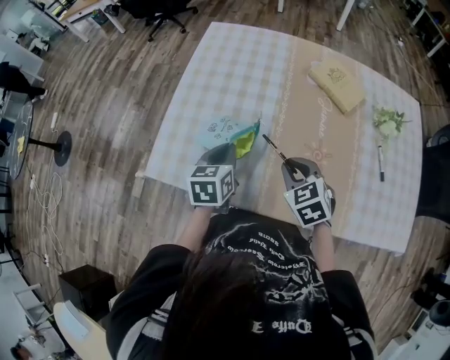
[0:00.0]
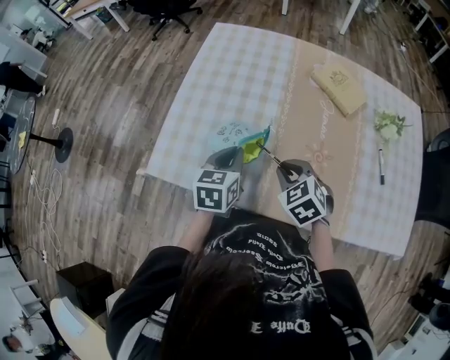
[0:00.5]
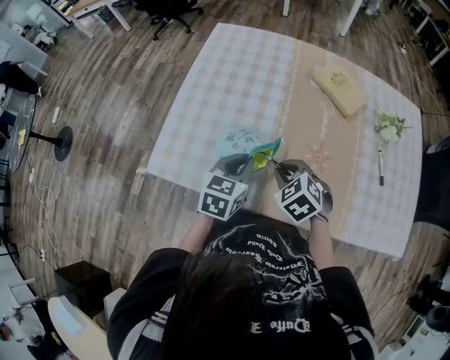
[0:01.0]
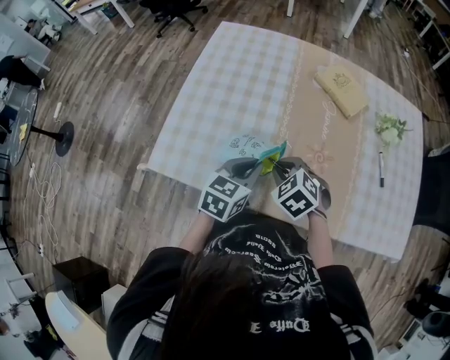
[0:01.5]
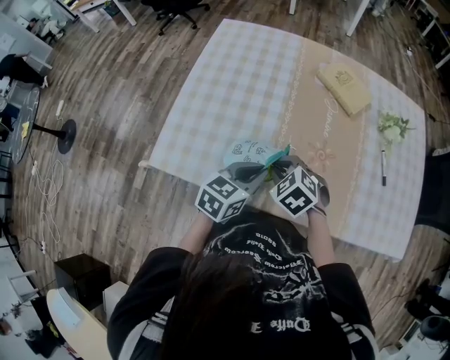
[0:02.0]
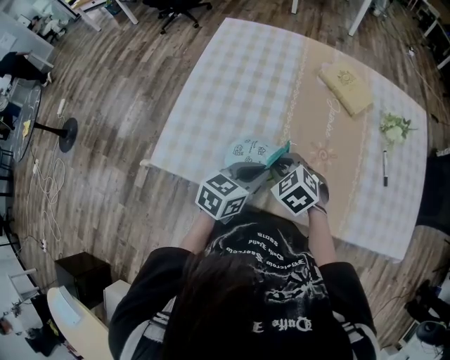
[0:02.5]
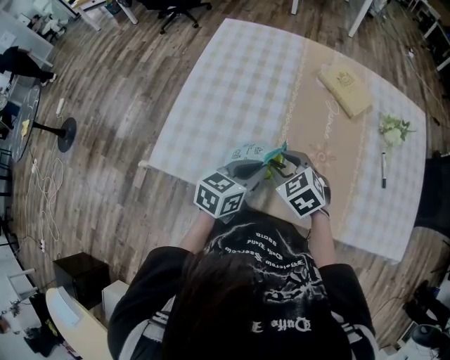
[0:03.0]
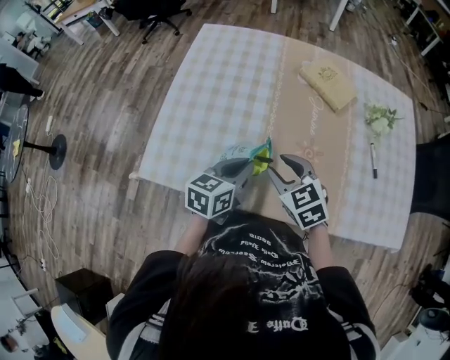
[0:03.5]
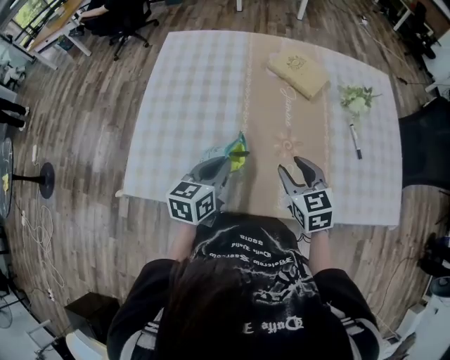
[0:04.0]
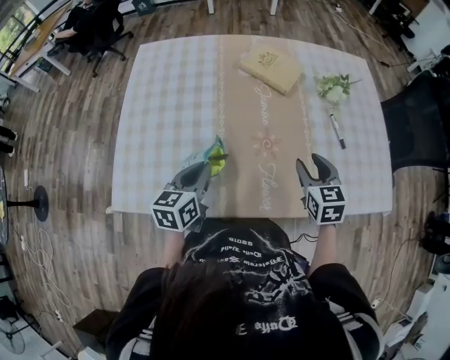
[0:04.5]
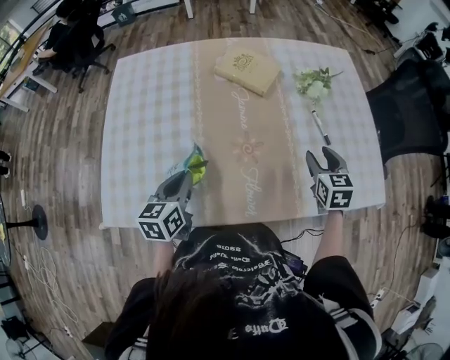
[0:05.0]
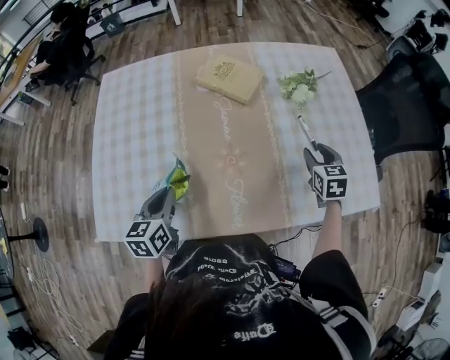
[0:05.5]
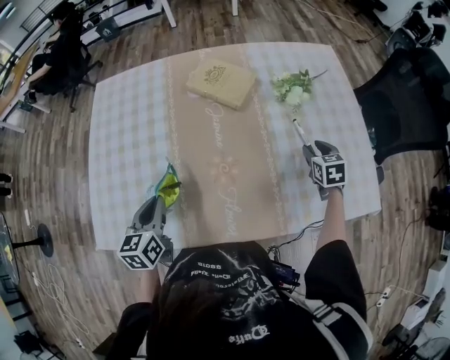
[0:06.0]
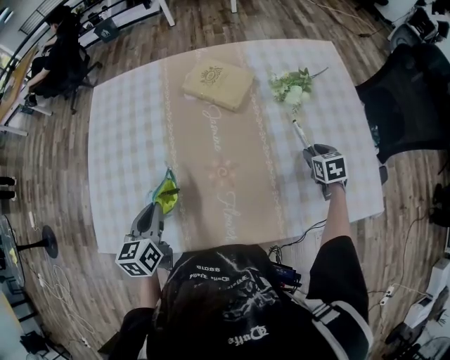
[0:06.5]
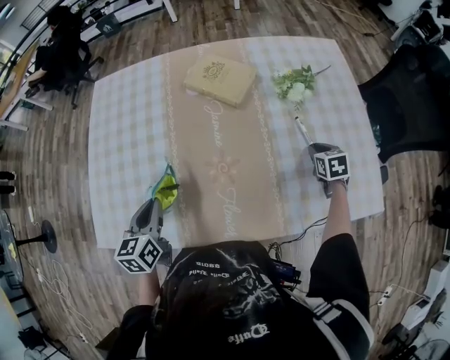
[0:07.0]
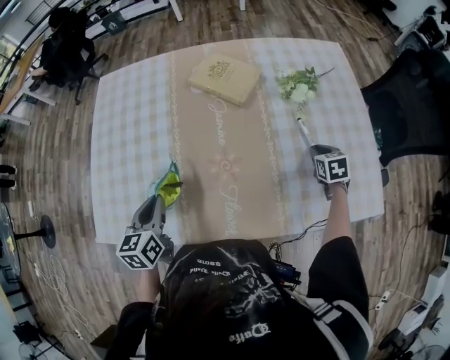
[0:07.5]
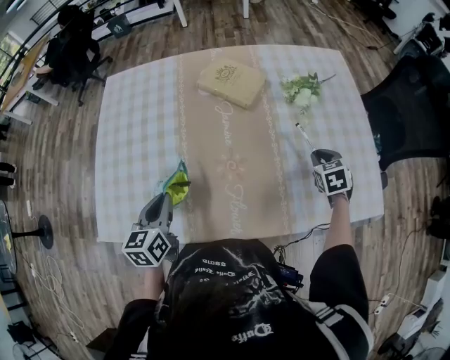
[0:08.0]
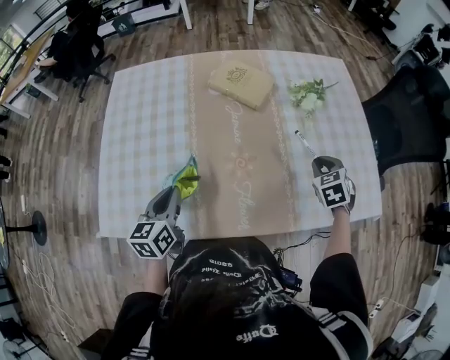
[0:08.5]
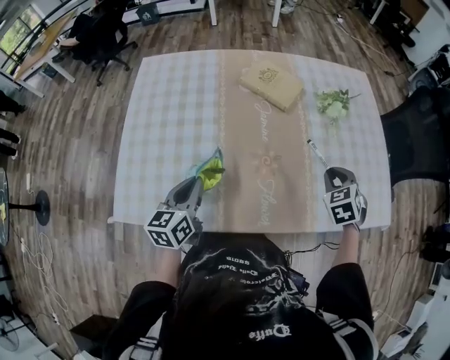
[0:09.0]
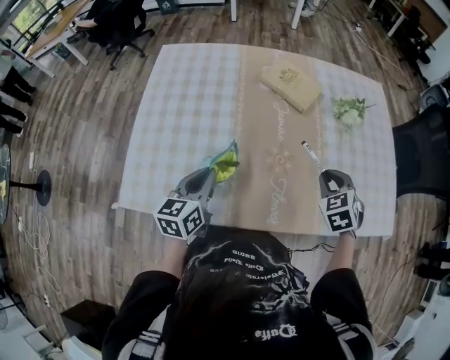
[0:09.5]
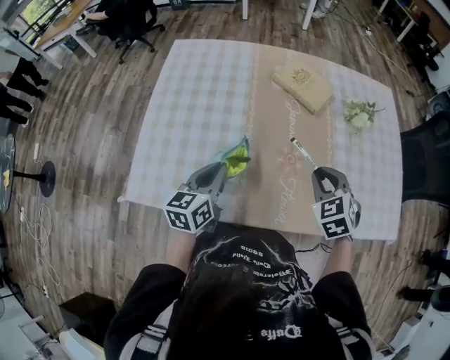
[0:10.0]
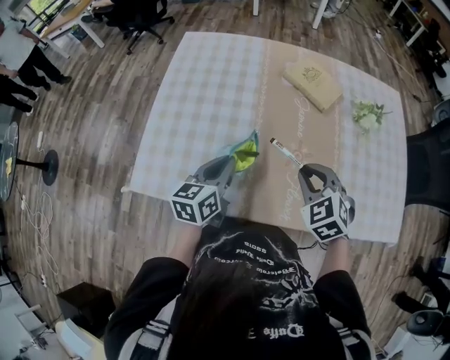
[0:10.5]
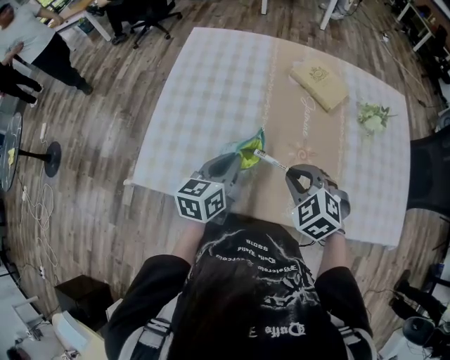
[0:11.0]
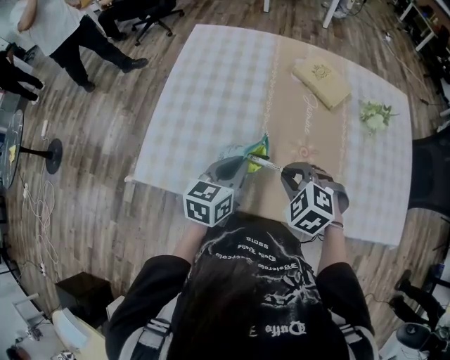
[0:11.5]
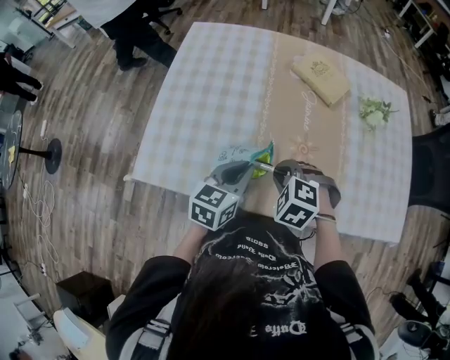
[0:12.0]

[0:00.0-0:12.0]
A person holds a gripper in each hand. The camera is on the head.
0:00.0 to 0:02.0: The left gripper heads to the right and backward, covering about 10 cm, and turns by roughly 30 degrees. The right gripper shifts by about 5 cm, and changes its angle by about 20 degrees.
0:02.0 to 0:04.0: The right gripper shifts approximately 15 cm to the right, changes its angle by approximately 40 degrees, and opens its fingers.
0:04.0 to 0:06.0: The left gripper changes place by roughly 5 cm. The right gripper heads to the right and forward, covering approximately 35 cm, and changes its angle by roughly 30 degrees.
0:06.0 to 0:08.0: The right gripper closes up.
0:08.0 to 0:10.0: The right gripper is displaced to the left, upward and backward by some 30 cm, and changes its angle by some 30 degrees, while the left gripper shifts some 5 cm to the left.
0:10.0 to 0:12.0: The right gripper moves to the left, some 15 cm, and turns by some 40 degrees.

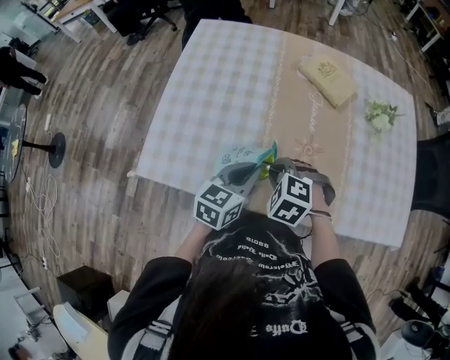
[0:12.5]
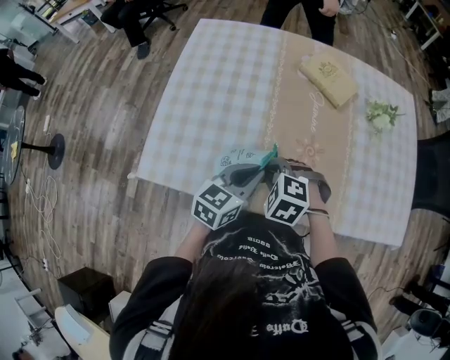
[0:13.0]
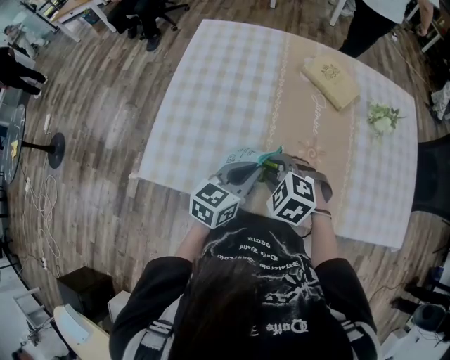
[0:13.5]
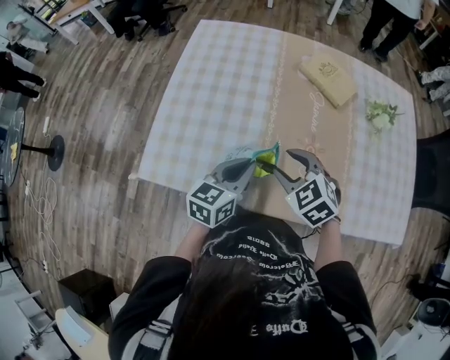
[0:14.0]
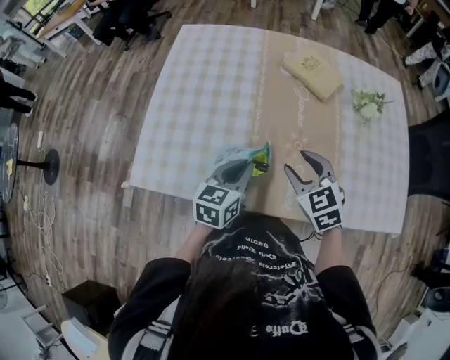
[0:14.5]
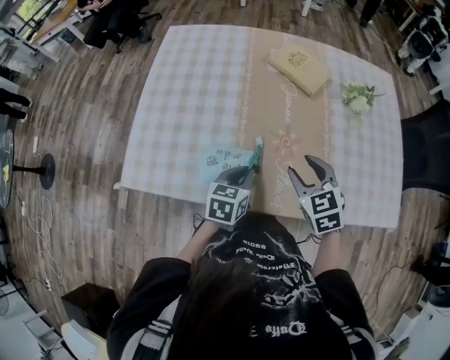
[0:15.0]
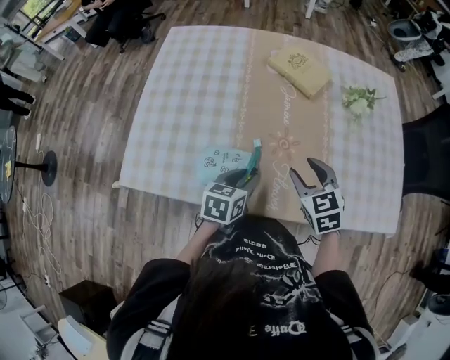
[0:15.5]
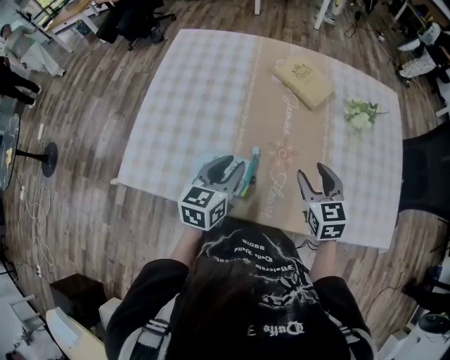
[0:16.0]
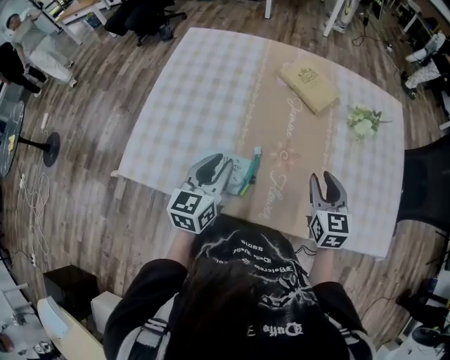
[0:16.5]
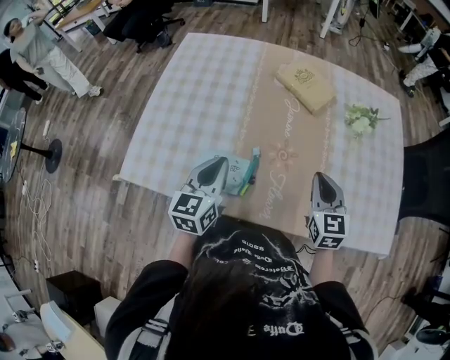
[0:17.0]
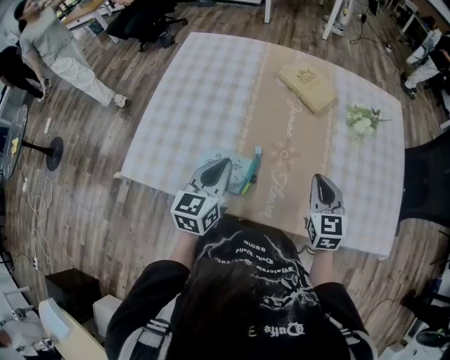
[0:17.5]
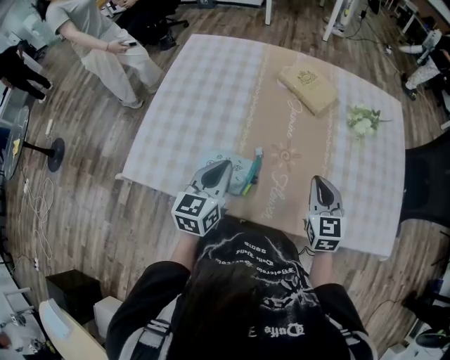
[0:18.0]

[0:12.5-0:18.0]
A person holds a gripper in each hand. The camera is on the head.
0:12.5 to 0:14.5: The right gripper heads to the right, covering about 10 cm, changes its angle by approximately 50 degrees, and opens its fingers.
0:14.5 to 0:16.0: The right gripper goes roughly 15 cm to the right and upward, while the left gripper heads upward, covering some 10 cm, and opens its fingers.
0:16.0 to 0:18.0: The right gripper heads downward, covering approximately 5 cm, and closes, while the left gripper closes its fingers.

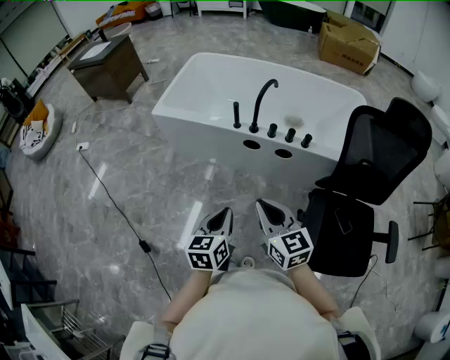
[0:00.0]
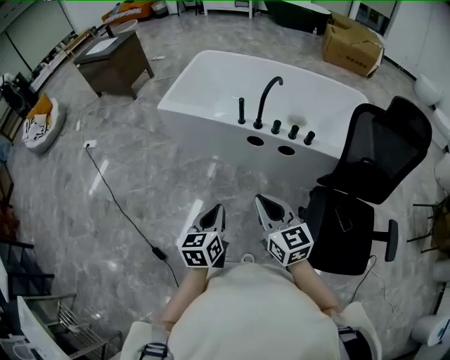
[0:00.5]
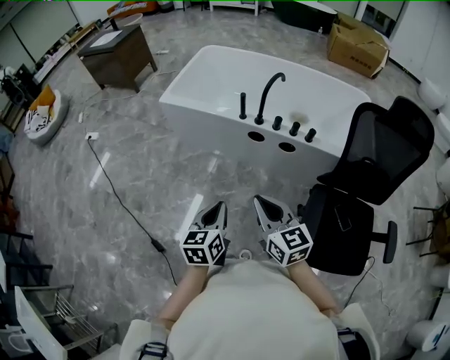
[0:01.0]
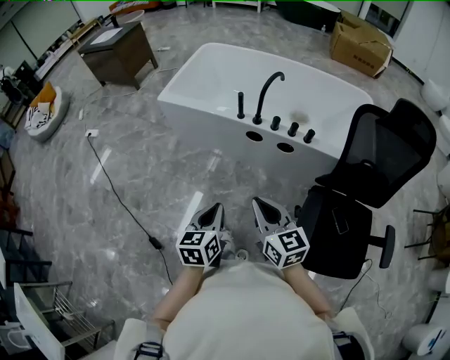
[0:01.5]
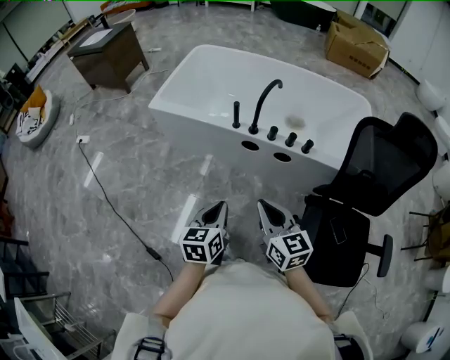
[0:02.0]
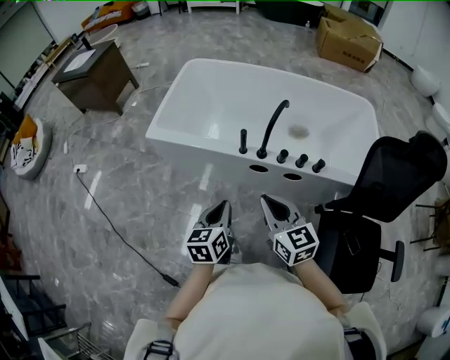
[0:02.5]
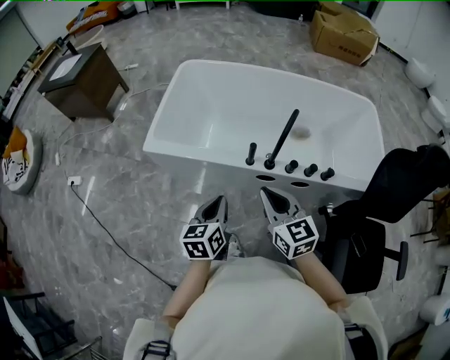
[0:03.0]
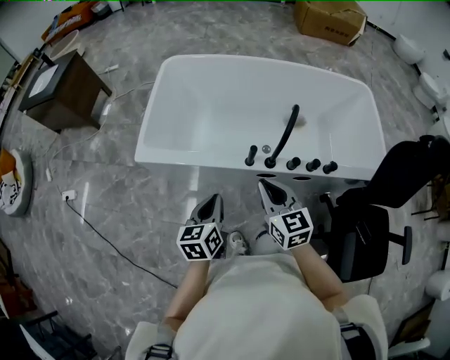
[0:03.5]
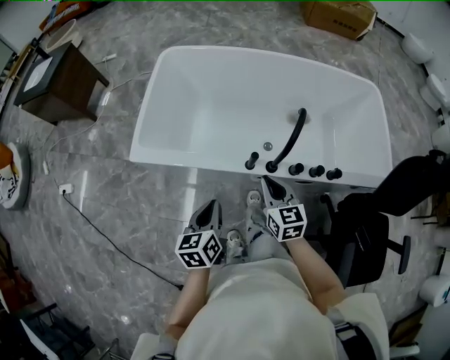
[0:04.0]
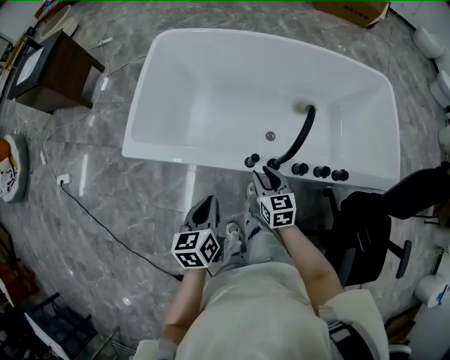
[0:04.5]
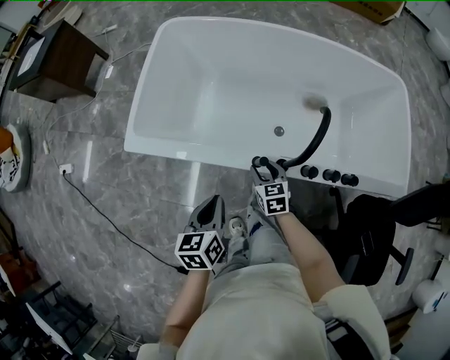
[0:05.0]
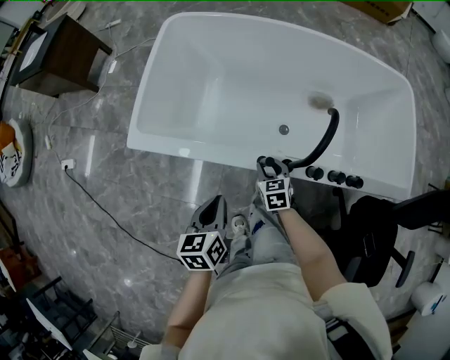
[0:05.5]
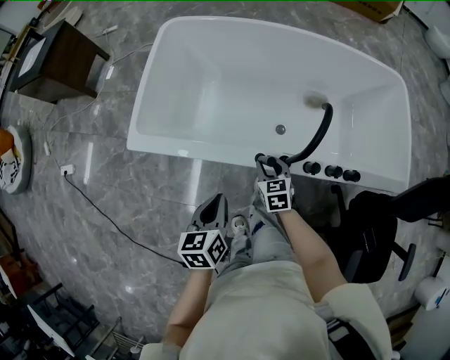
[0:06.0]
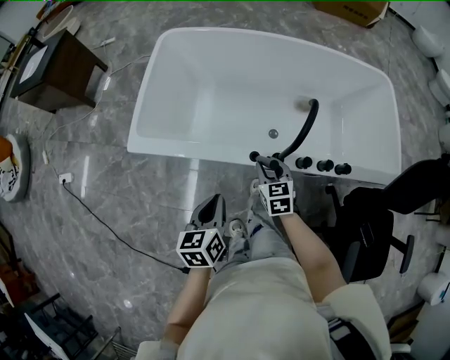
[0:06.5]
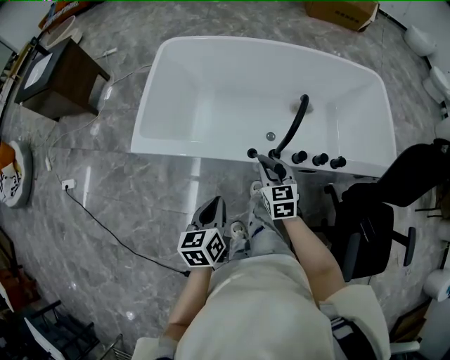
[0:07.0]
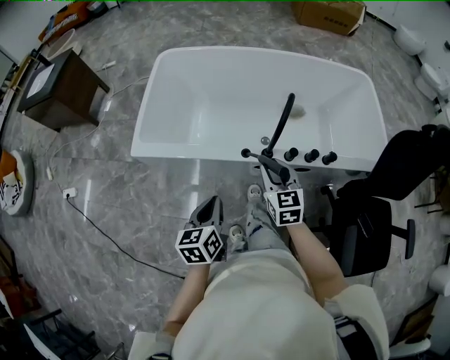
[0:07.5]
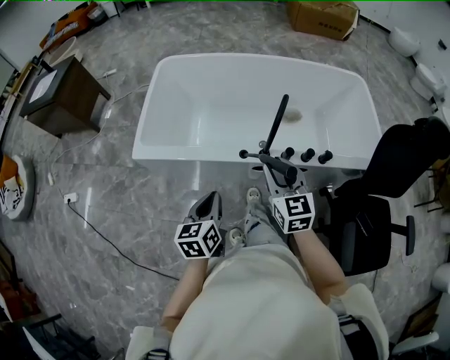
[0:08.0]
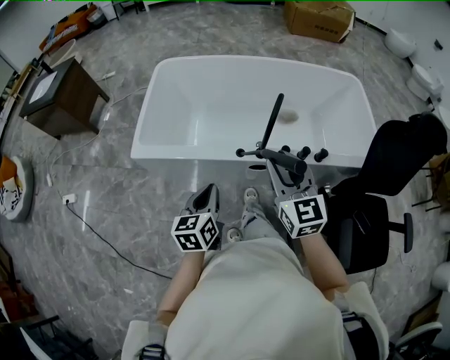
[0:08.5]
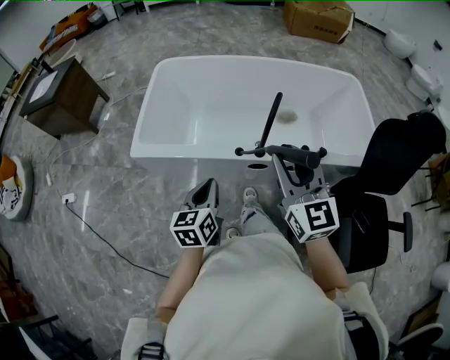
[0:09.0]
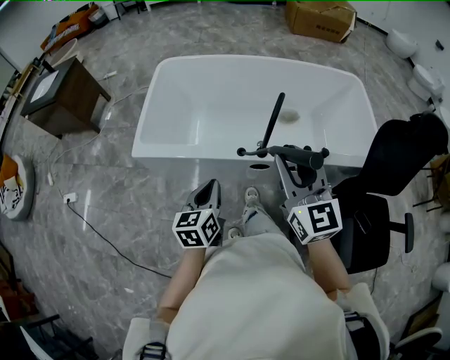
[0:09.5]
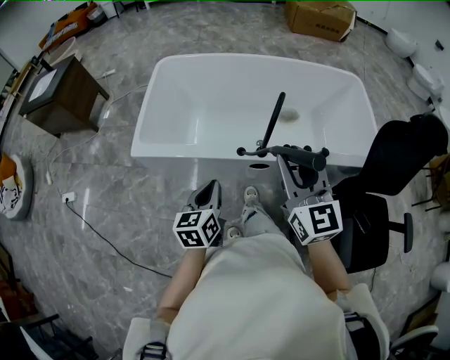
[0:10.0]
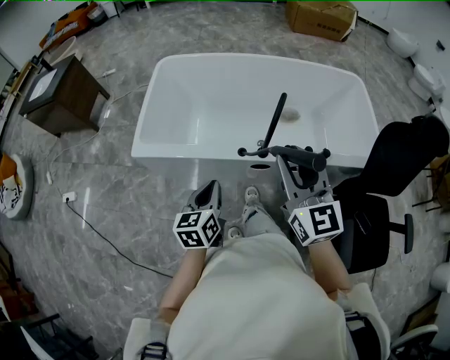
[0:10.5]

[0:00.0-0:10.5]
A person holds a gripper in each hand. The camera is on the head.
0:00.0 to 0:02.0: The grippers both shift forward by roughly 5 cm.
0:02.0 to 0:04.0: The left gripper moves forward and to the left, about 40 cm, while the right gripper heads forward, covering approximately 40 cm.
0:04.0 to 0:06.5: The right gripper goes about 10 cm downward and forward, and opens its fingers.
0:06.5 to 0:08.5: The right gripper moves upward and backward, some 30 cm, and rotates approximately 30 degrees; the left gripper heads backward and upward, covering some 10 cm.
0:08.5 to 0:10.5: The right gripper shifts about 5 cm upward.
